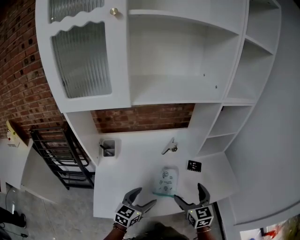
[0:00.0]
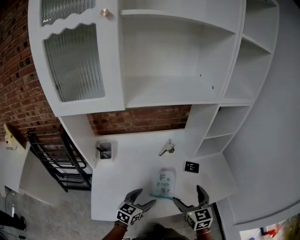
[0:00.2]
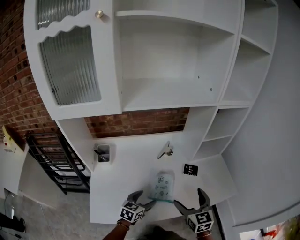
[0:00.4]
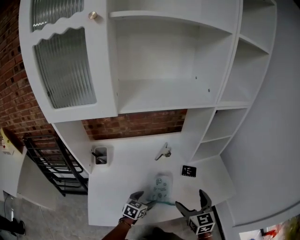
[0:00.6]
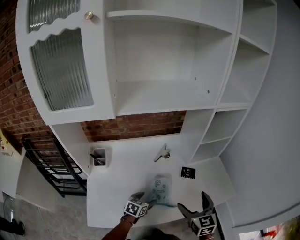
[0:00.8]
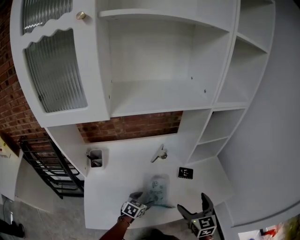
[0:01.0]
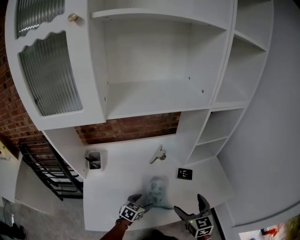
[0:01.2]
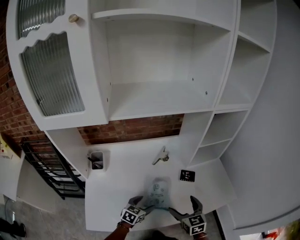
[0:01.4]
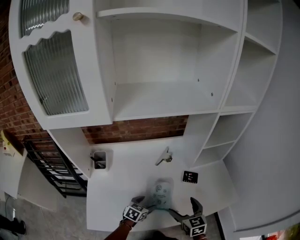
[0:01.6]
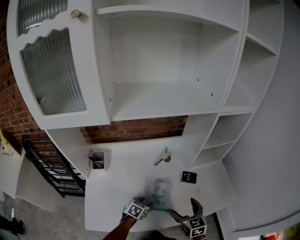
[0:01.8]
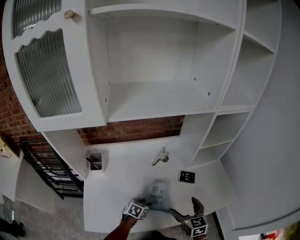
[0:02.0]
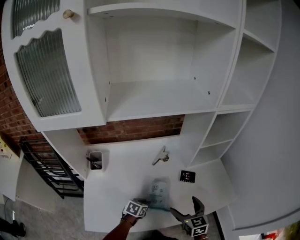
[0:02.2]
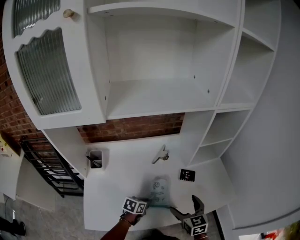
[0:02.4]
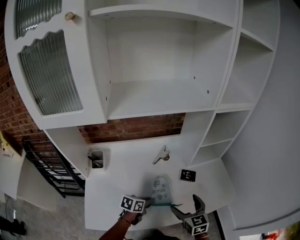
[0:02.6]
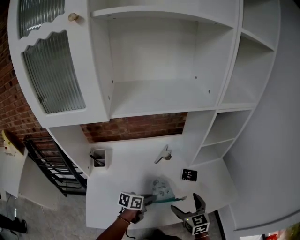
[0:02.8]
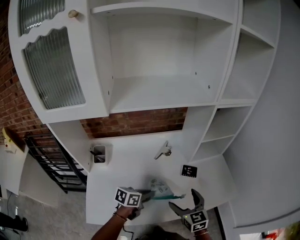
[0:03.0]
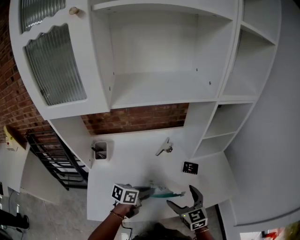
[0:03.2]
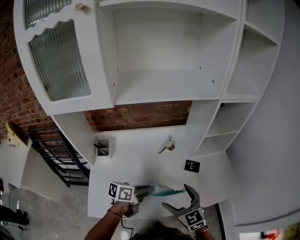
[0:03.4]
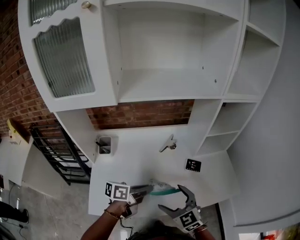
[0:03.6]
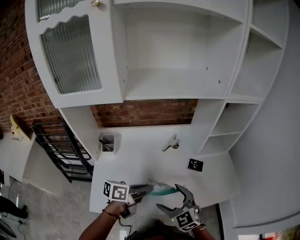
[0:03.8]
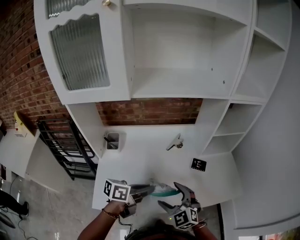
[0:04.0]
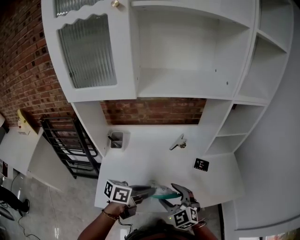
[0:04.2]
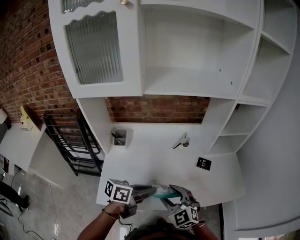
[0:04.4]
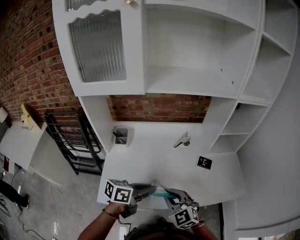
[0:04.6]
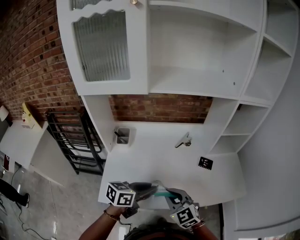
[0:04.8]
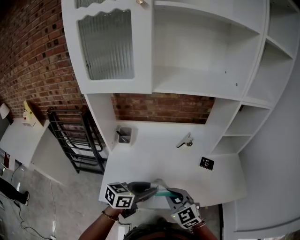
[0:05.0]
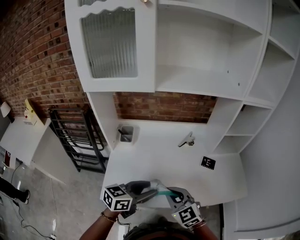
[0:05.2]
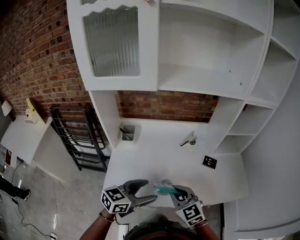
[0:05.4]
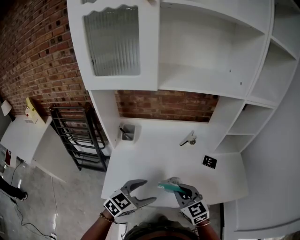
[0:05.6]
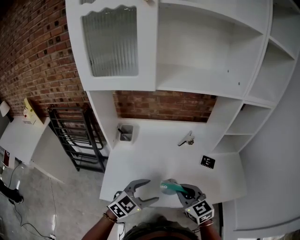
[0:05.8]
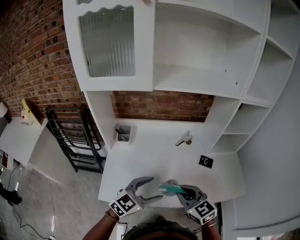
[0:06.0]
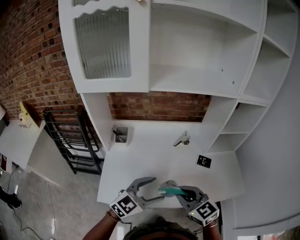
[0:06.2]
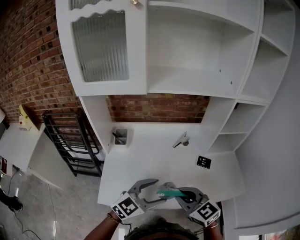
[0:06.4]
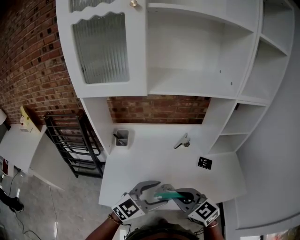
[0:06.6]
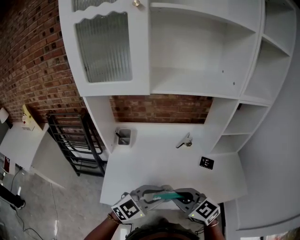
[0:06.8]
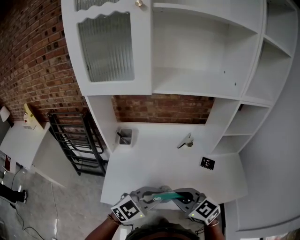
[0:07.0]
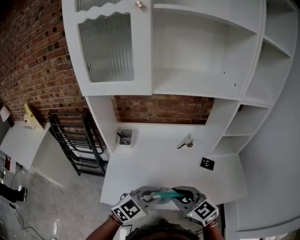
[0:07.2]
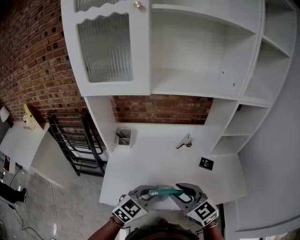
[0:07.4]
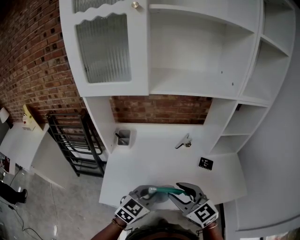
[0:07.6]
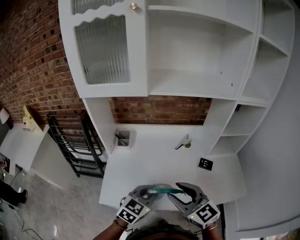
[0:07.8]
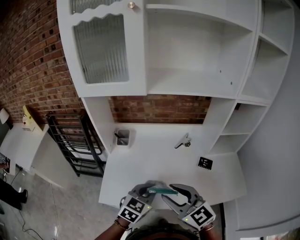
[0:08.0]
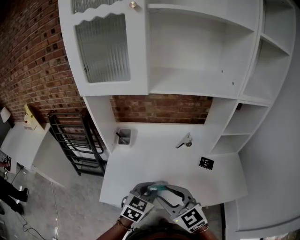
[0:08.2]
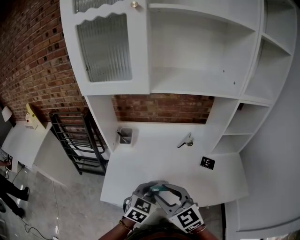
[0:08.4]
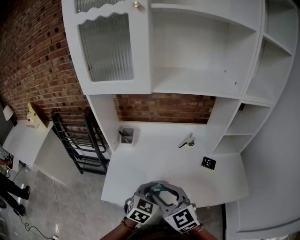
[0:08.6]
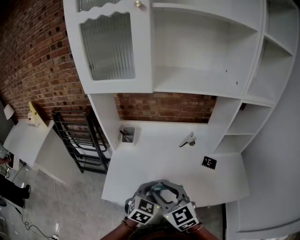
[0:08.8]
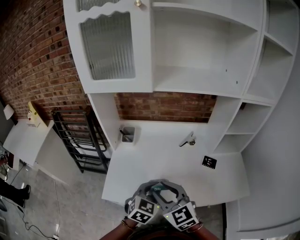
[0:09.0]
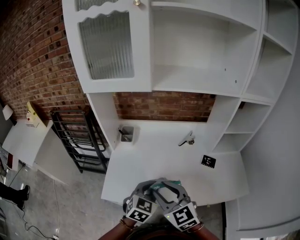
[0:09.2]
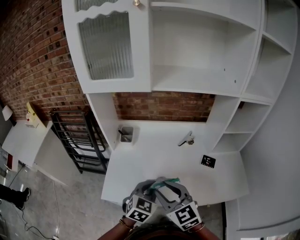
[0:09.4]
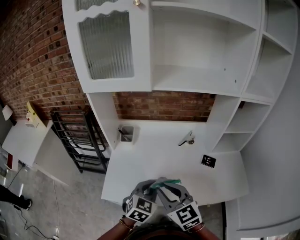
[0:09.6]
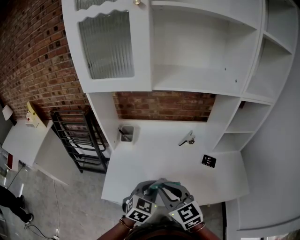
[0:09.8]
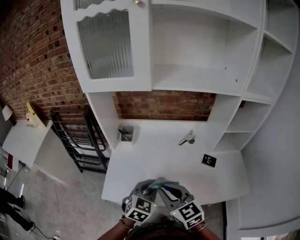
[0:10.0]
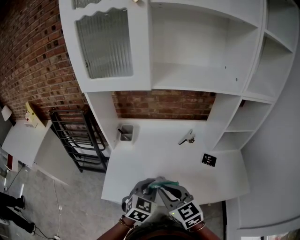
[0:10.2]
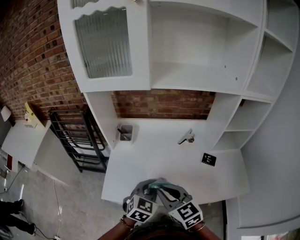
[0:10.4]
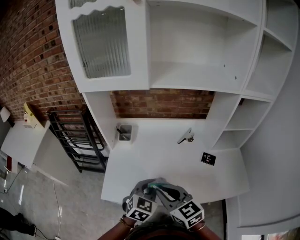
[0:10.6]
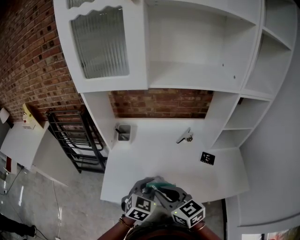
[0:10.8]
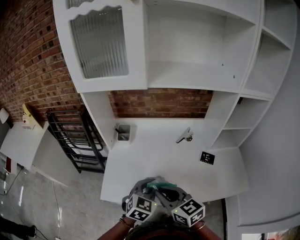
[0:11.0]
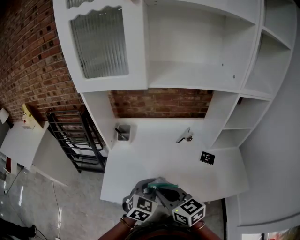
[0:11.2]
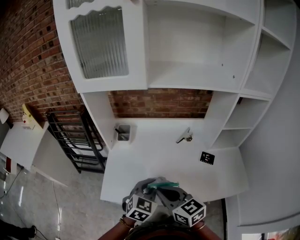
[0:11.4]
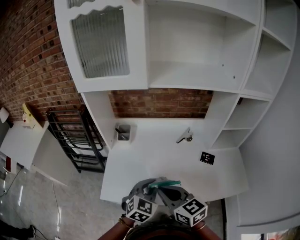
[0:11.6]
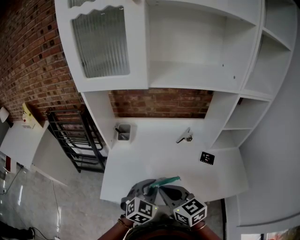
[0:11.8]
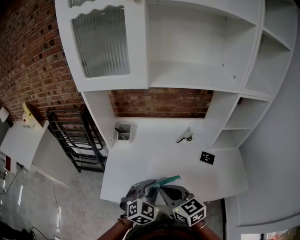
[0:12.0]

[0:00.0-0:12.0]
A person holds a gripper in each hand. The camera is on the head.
0.0 to 1.6 s: The left gripper travels downward and forward by about 15 cm, and turns by approximately 20 degrees. The right gripper shifts roughly 10 cm downward.
1.6 to 3.0 s: The left gripper shifts roughly 10 cm upward, rotates about 30 degrees, and closes up.
3.0 to 4.4 s: The left gripper shifts approximately 15 cm backward and upward, while the right gripper moves to the left and backward, about 15 cm, changes its angle by roughly 40 degrees, and closes up.
4.4 to 6.0 s: The right gripper changes place by approximately 5 cm, turns by approximately 20 degrees, and closes its fingers, while the left gripper rotates around the line of its fingers by about 50 degrees, clockwise from behind, and opens its fingers.
6.0 to 7.6 s: The left gripper closes up.
7.6 to 9.0 s: The right gripper goes about 5 cm to the left; the left gripper rotates some 20 degrees.
9.0 to 10.4 s: The grippers stay close to where they were, moving slightly.
10.4 to 12.0 s: The grippers move only a little.

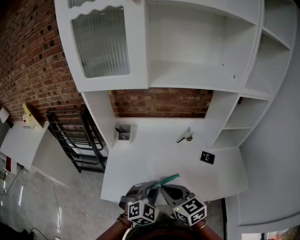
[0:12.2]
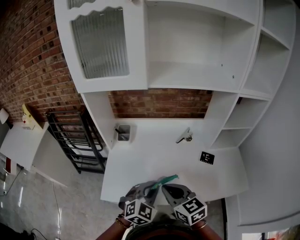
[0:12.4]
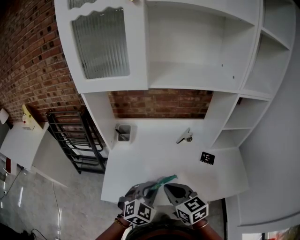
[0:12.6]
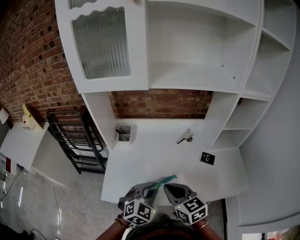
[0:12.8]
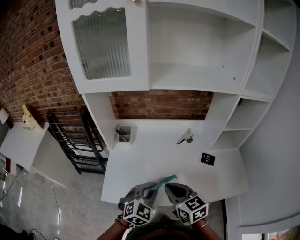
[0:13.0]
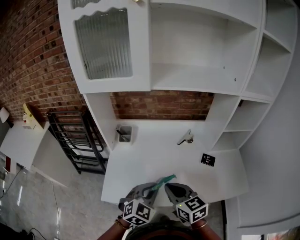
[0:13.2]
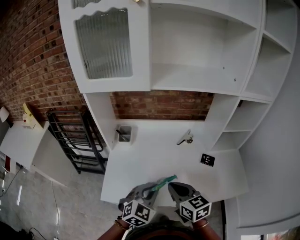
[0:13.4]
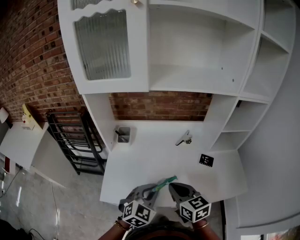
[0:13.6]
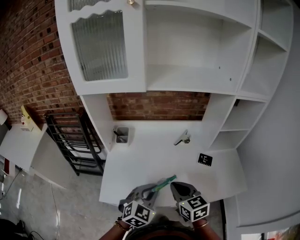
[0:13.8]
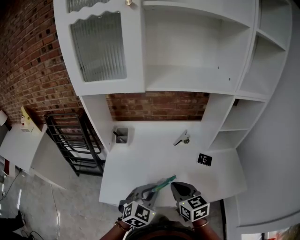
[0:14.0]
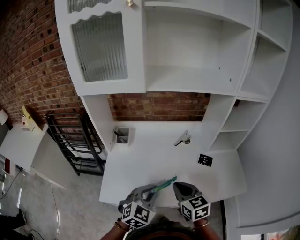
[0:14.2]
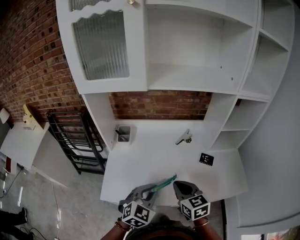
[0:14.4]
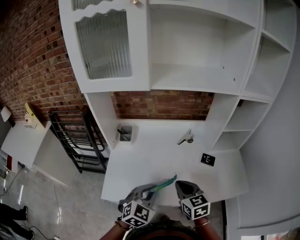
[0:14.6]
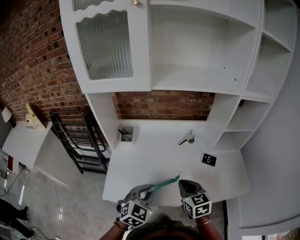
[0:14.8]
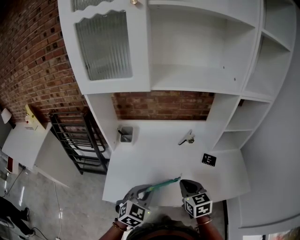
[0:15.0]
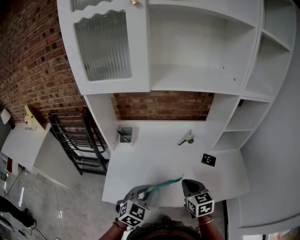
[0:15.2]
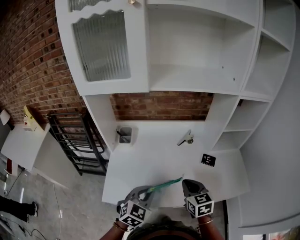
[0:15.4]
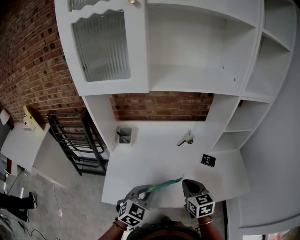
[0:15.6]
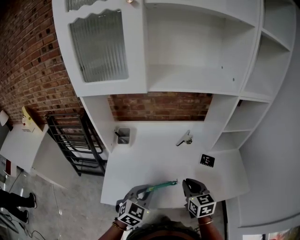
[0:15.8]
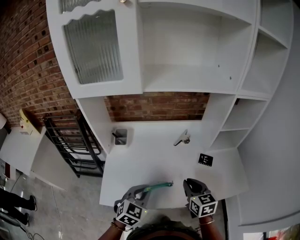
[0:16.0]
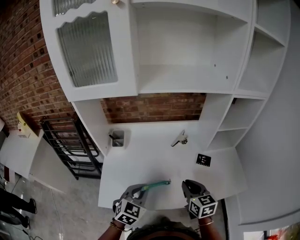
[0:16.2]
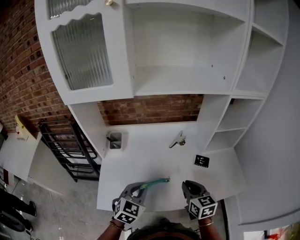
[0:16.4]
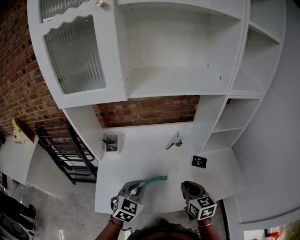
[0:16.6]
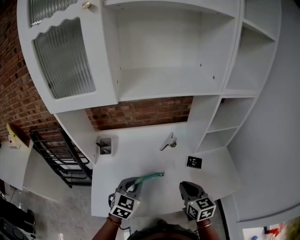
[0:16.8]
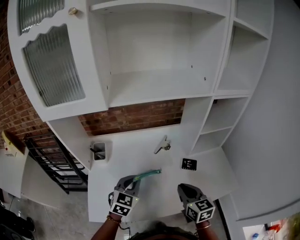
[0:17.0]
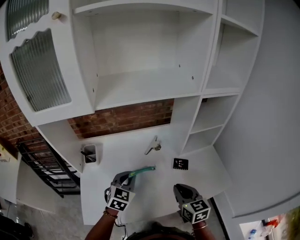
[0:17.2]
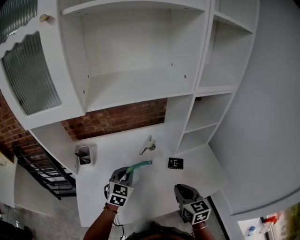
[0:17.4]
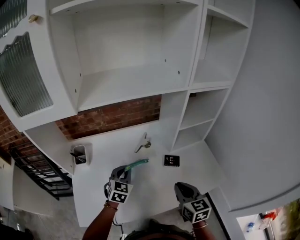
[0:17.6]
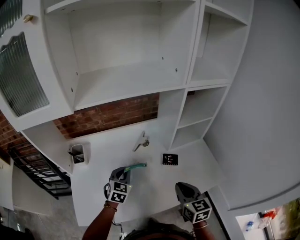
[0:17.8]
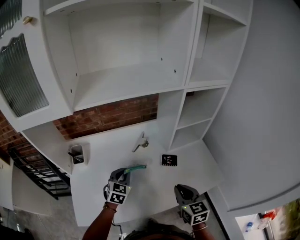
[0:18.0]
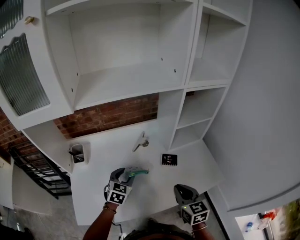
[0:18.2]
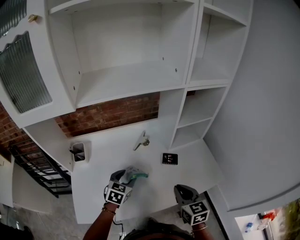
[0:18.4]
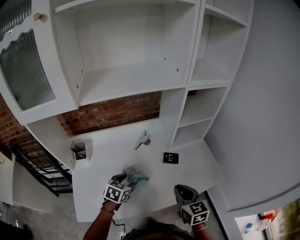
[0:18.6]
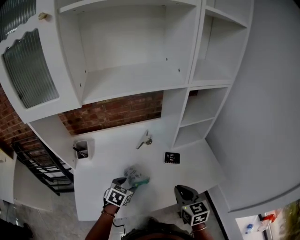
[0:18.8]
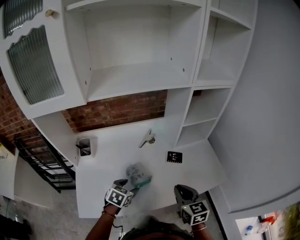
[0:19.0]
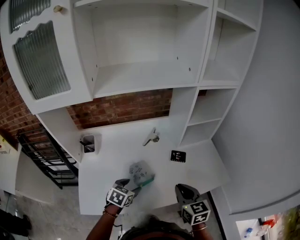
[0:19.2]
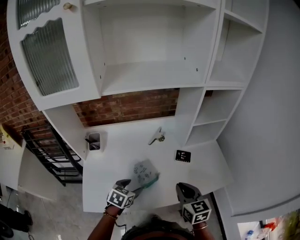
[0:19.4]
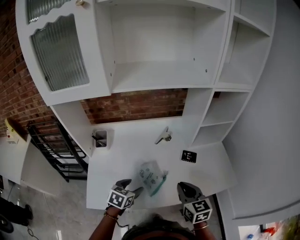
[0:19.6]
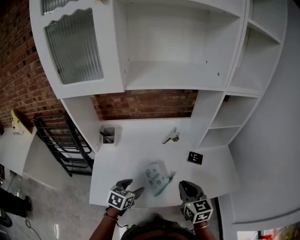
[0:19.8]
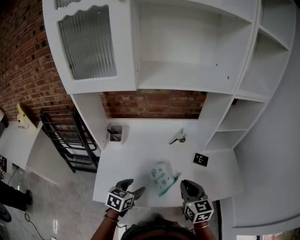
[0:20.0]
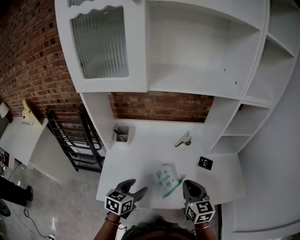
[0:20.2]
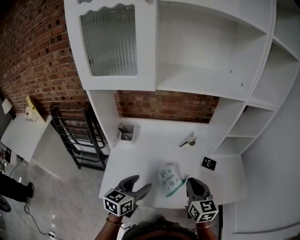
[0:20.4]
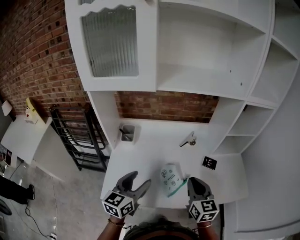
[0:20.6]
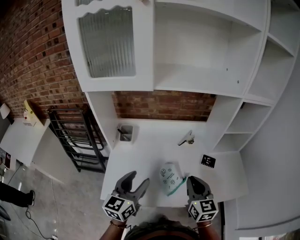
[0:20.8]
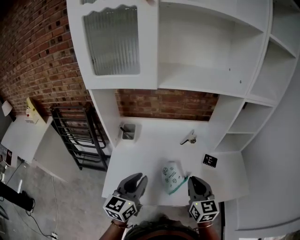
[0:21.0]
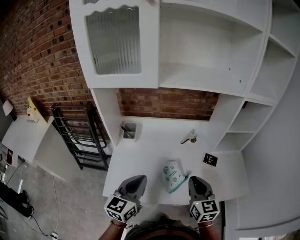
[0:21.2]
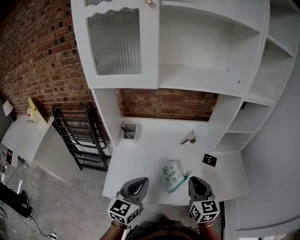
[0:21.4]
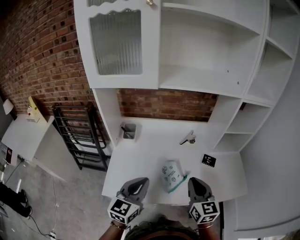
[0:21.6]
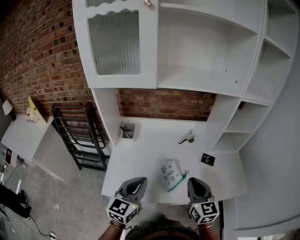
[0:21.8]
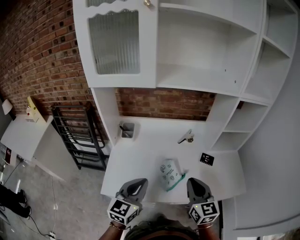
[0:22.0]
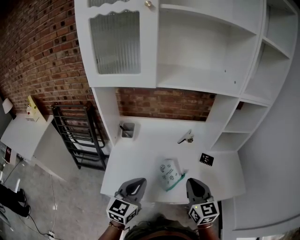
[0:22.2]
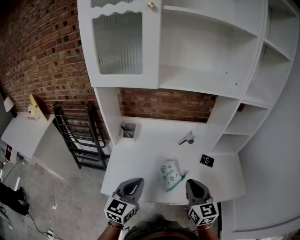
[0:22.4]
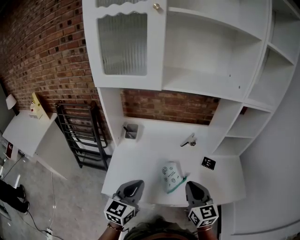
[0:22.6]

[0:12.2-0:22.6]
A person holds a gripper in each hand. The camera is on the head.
12.2 to 13.6 s: There are only small adjustments of the grippers.
13.6 to 15.2 s: The right gripper is displaced to the right by some 5 cm.
15.2 to 16.6 s: The right gripper heads to the right, covering some 5 cm. The left gripper heads forward, covering some 5 cm.
16.6 to 18.2 s: The right gripper travels to the right by approximately 10 cm; the left gripper goes roughly 15 cm forward, to the right and downward.
18.2 to 19.6 s: The right gripper is displaced to the left by roughly 5 cm. The left gripper goes about 15 cm backward, and rotates about 20 degrees.
19.6 to 21.2 s: The left gripper heads upward and to the left, covering about 20 cm, angles its fingers upward, by some 40 degrees, and closes its fingers. Meanwhile the right gripper heads to the left, covering about 5 cm.
21.2 to 22.6 s: There are only small adjustments of the grippers.

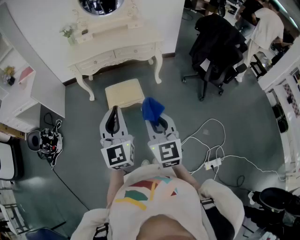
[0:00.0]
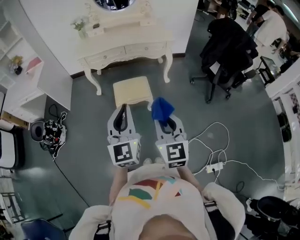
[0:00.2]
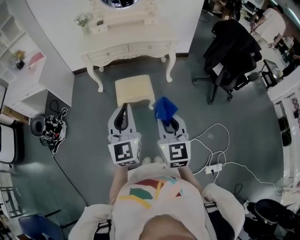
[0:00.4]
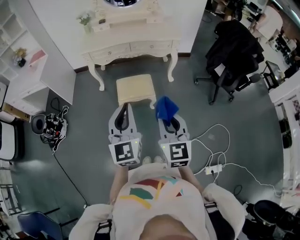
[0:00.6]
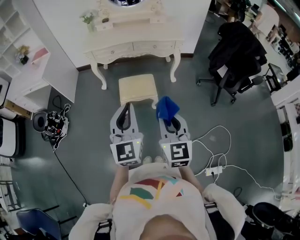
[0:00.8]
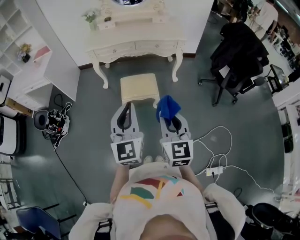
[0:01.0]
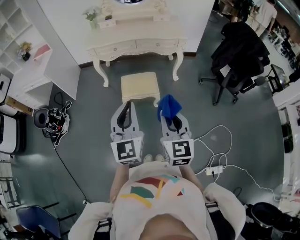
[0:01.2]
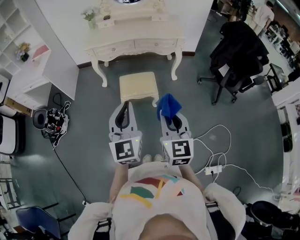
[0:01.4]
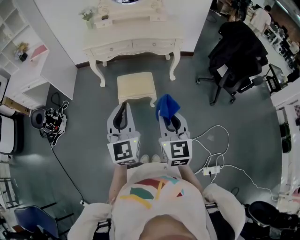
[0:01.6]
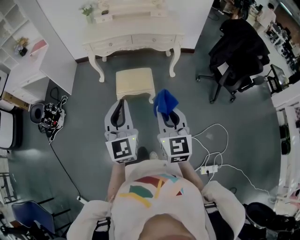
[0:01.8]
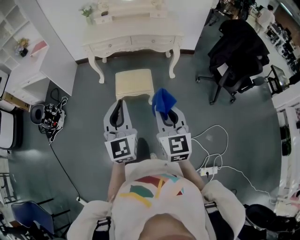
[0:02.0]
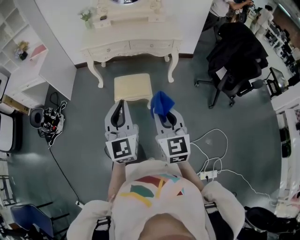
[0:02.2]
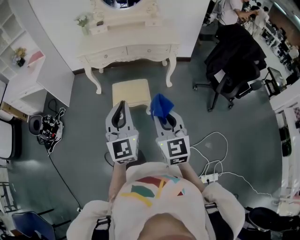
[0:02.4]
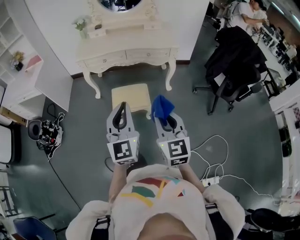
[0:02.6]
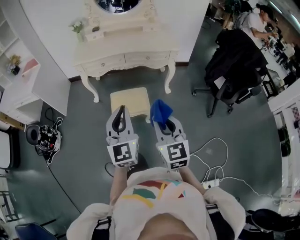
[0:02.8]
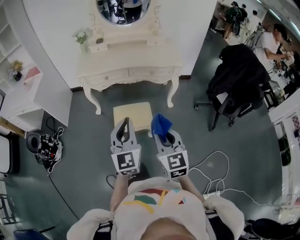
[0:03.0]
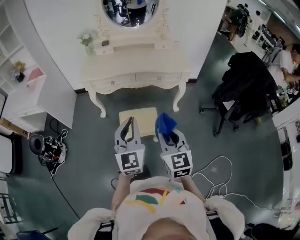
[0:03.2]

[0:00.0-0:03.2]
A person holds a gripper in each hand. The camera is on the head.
0.0 to 1.6 s: There are only small adjustments of the grippers.
1.6 to 3.2 s: The two grippers go approximately 25 cm forward.
